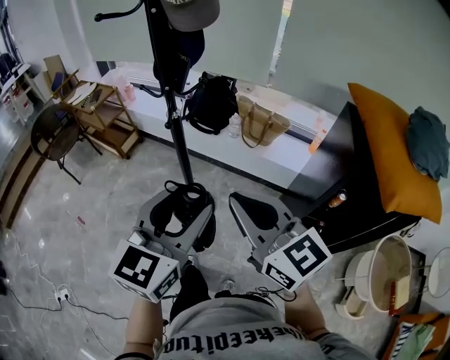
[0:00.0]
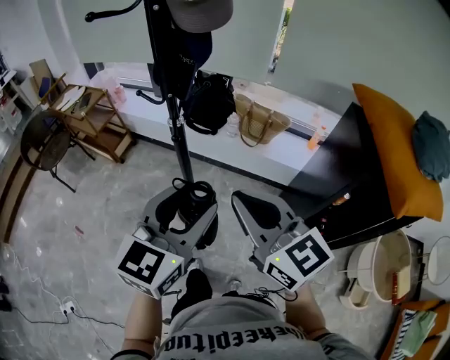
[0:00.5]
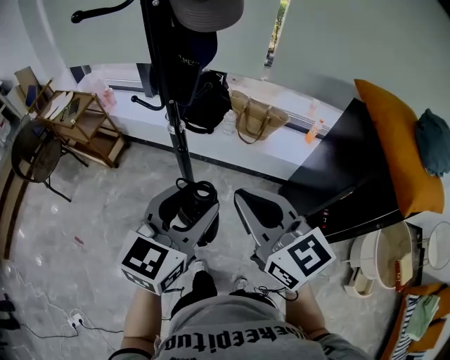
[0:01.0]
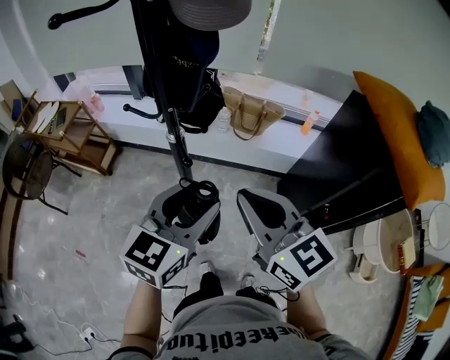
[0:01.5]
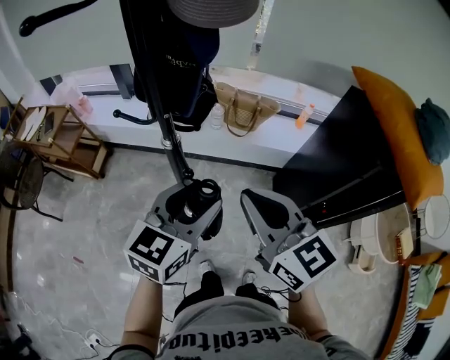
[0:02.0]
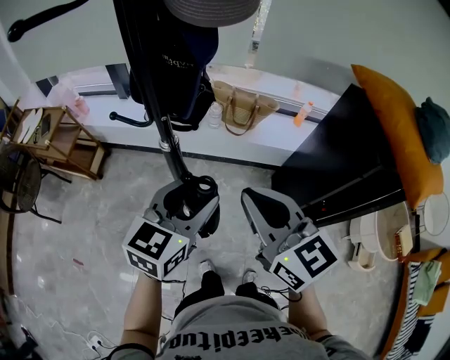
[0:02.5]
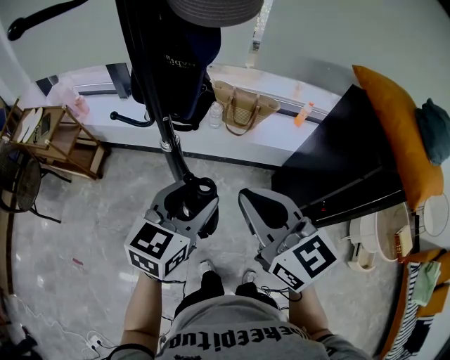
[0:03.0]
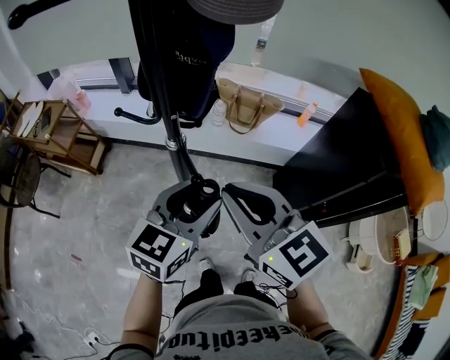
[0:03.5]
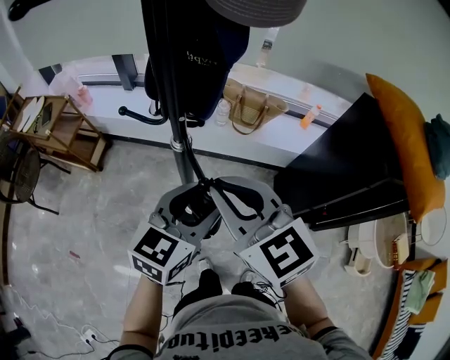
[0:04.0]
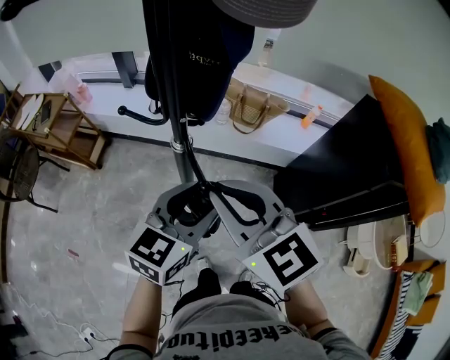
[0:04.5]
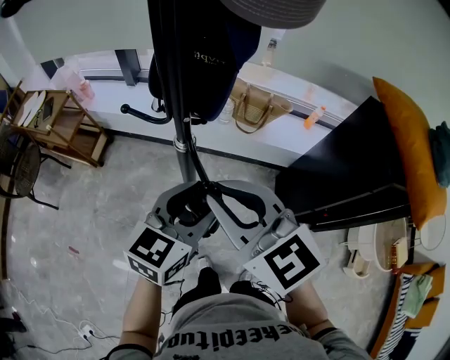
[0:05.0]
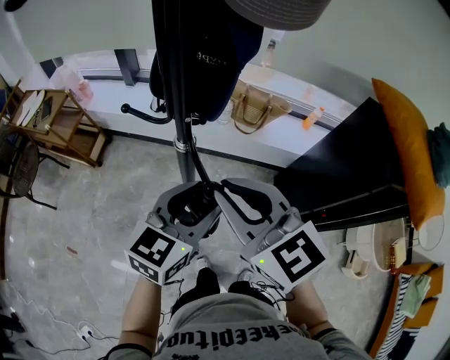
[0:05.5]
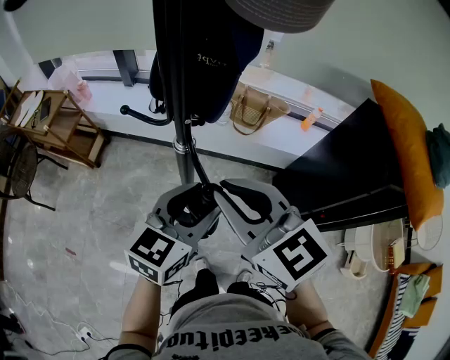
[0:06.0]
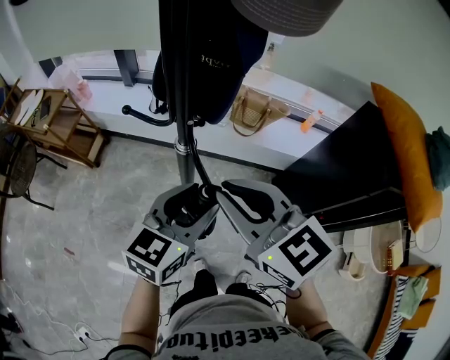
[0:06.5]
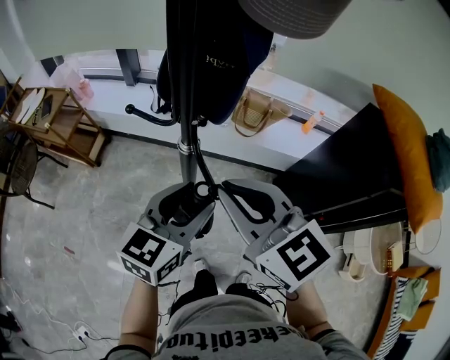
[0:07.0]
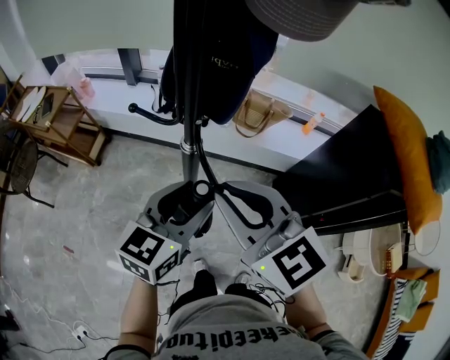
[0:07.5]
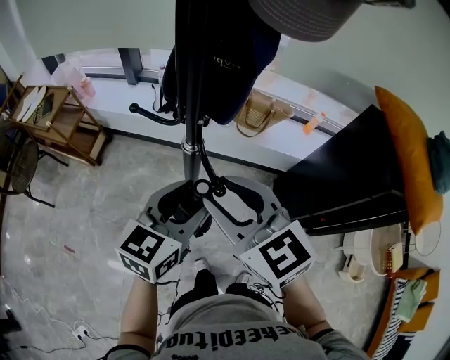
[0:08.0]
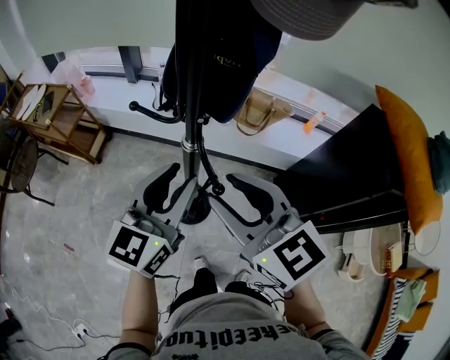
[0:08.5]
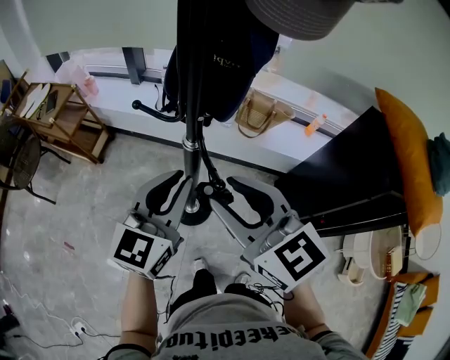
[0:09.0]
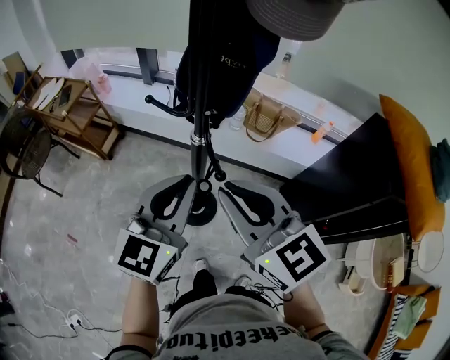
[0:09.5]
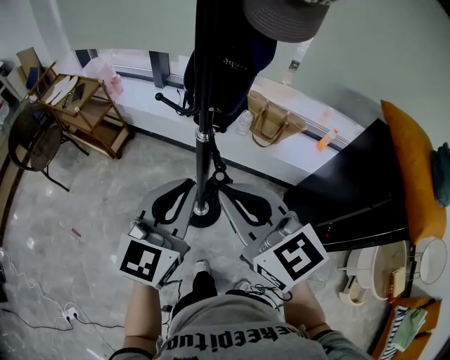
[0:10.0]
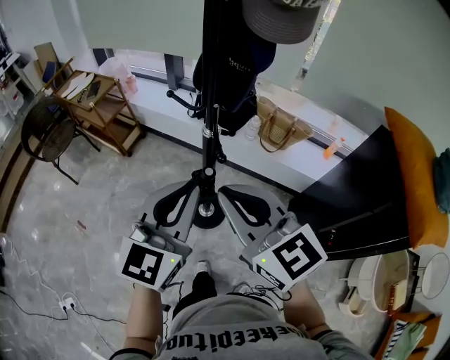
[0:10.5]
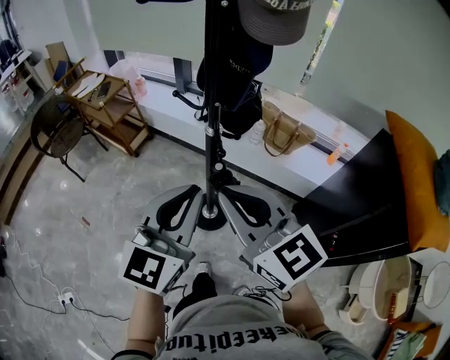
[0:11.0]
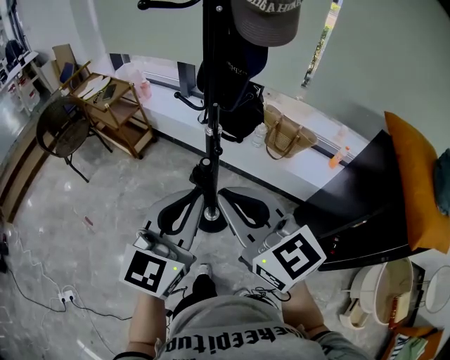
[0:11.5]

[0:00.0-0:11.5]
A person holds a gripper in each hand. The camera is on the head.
0:00.0 to 0:02.0: The left gripper goes roughly 20 cm forward, downward and to the left, and turns by some 30 degrees. Meanwhile the right gripper shifts roughly 15 cm forward and to the left, and changes its angle by some 20 degrees.
0:02.0 to 0:04.0: The right gripper is displaced to the left by roughly 10 cm.
0:04.0 to 0:07.5: The grippers make only small movements.
0:07.5 to 0:09.5: The right gripper opens and closes again. The left gripper moves upward, about 5 cm, changes its angle by roughly 20 degrees, and closes.
0:09.5 to 0:11.5: The left gripper moves backward and upward, roughly 15 cm. The right gripper heads backward, covering approximately 10 cm.

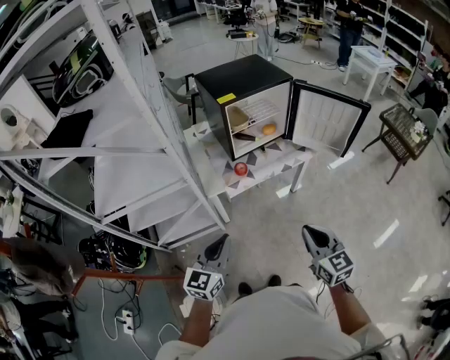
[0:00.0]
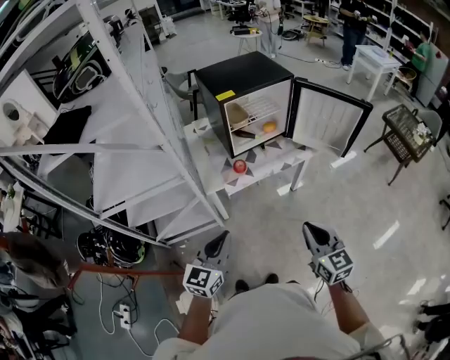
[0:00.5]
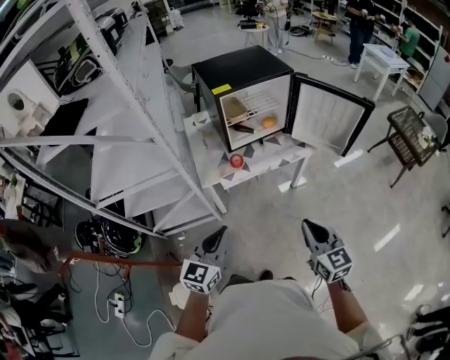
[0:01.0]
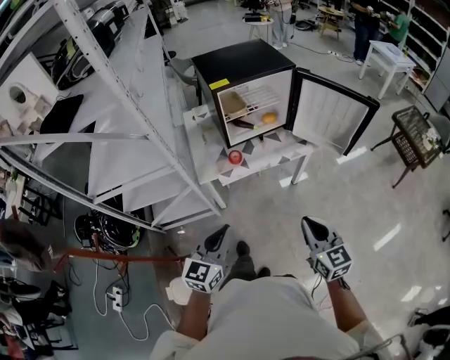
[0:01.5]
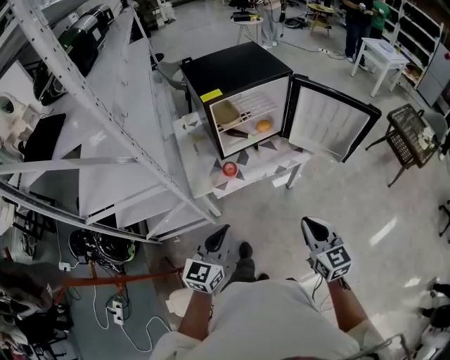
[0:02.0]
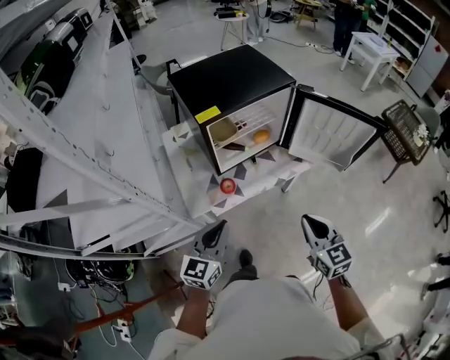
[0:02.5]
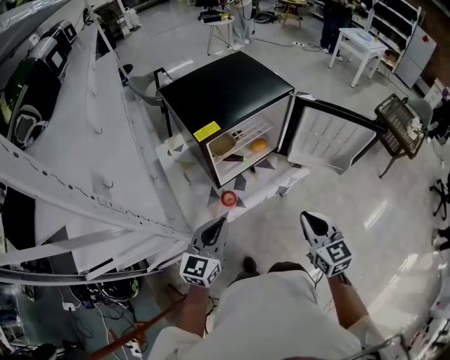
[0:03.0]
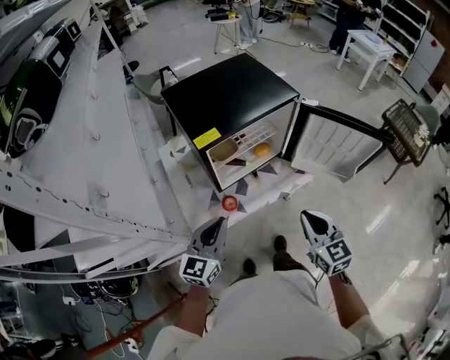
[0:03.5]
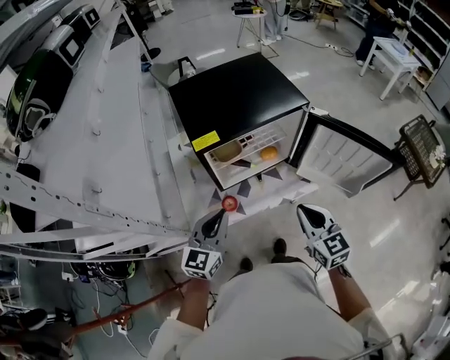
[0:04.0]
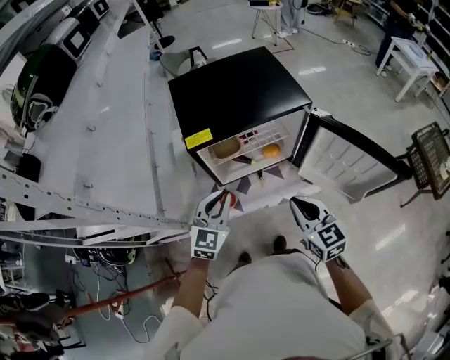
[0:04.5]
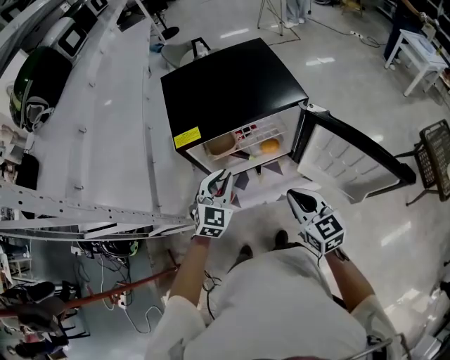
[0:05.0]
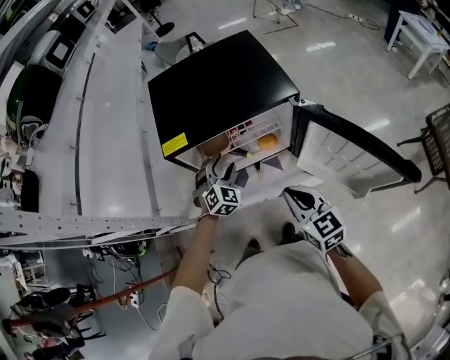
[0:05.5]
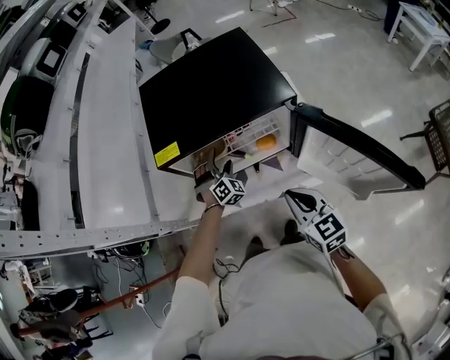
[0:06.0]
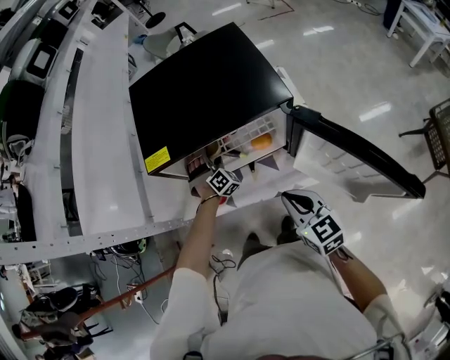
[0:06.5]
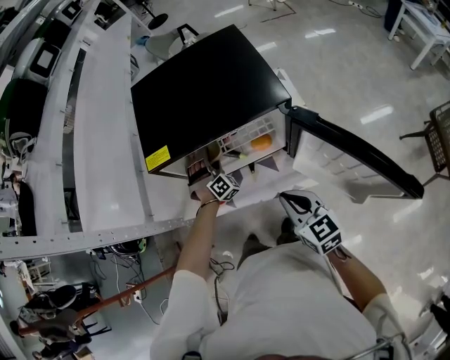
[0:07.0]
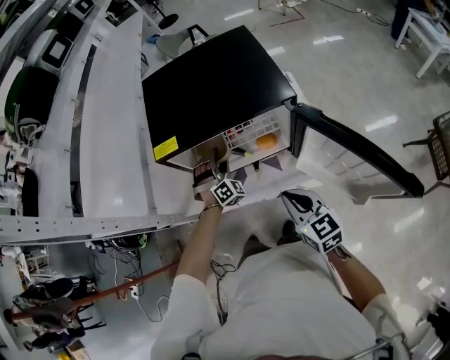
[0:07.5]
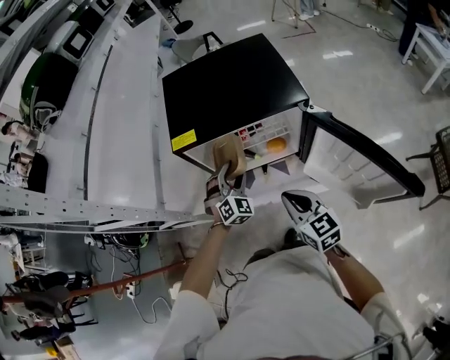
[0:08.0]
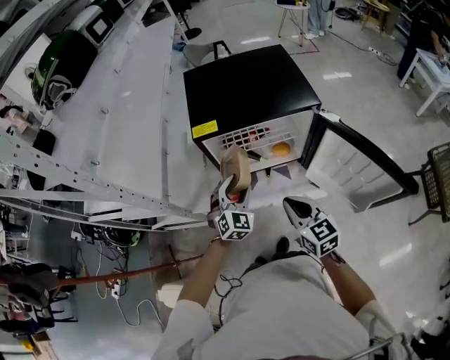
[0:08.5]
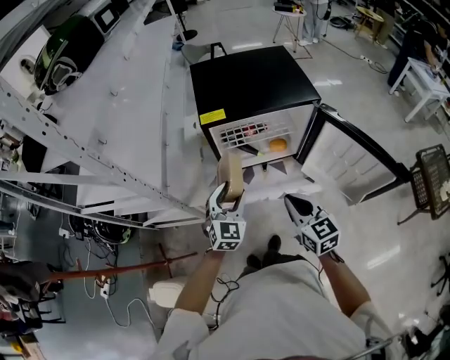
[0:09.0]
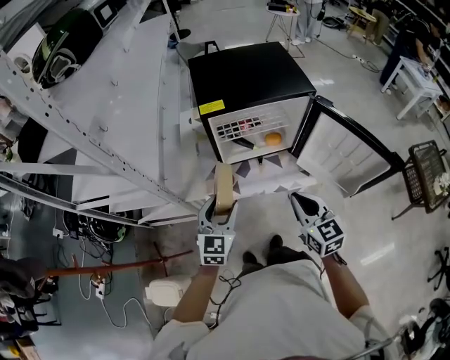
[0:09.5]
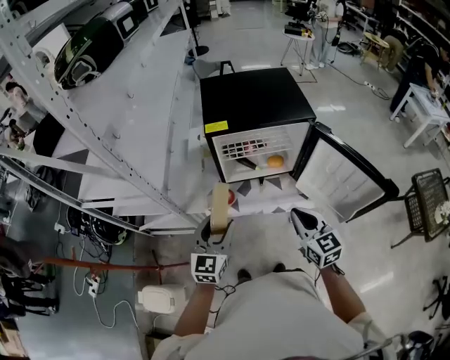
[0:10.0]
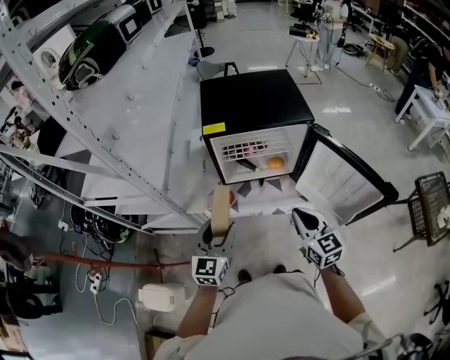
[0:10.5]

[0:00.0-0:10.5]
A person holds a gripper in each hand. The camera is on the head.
0:00.0 to 0:02.0: Both grippers move forward and to the right, about 15 cm.
0:02.0 to 0:04.0: Both grippers travel together forward, approximately 25 cm.
0:04.0 to 0:06.5: The left gripper moves some 35 cm, swivels about 80 degrees, and opens up; the right gripper shifts by some 15 cm.
0:06.5 to 0:08.5: The left gripper goes roughly 25 cm backward and upward, turns by roughly 40 degrees, and closes. Meanwhile the right gripper travels to the left by roughly 10 cm.
0:08.5 to 0:10.5: The left gripper goes some 20 cm backward and upward, and swivels roughly 40 degrees. The right gripper moves backward, approximately 5 cm.

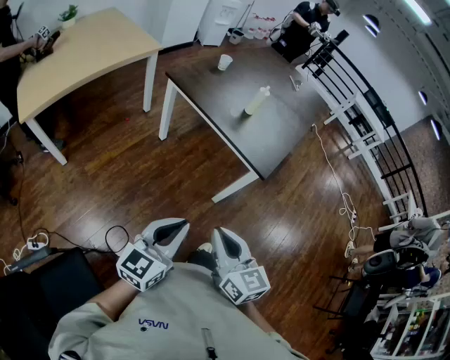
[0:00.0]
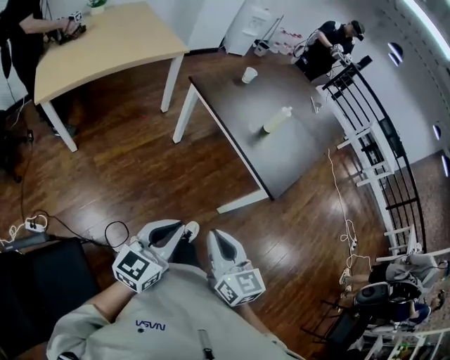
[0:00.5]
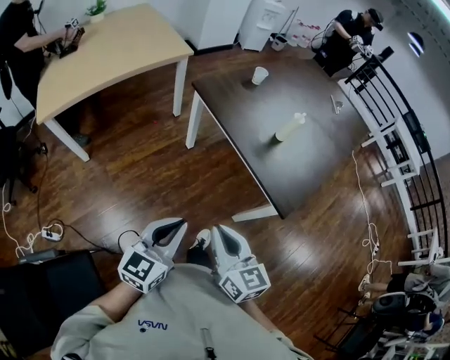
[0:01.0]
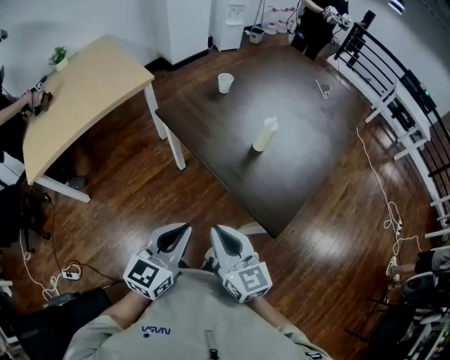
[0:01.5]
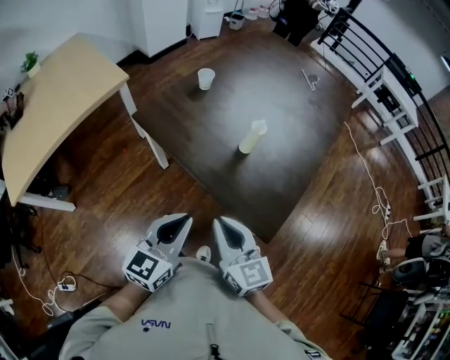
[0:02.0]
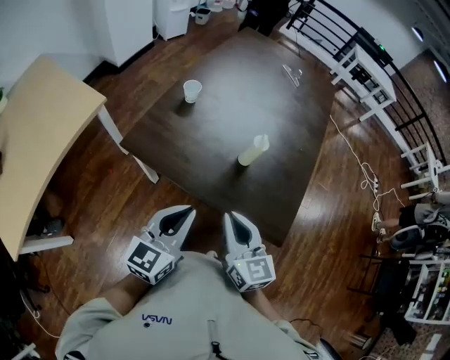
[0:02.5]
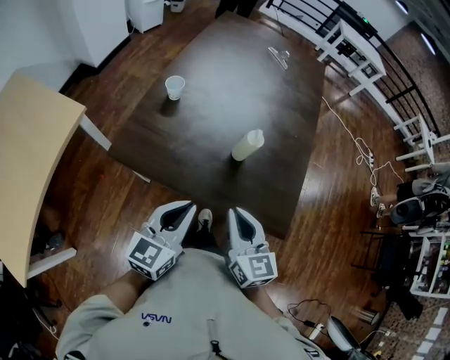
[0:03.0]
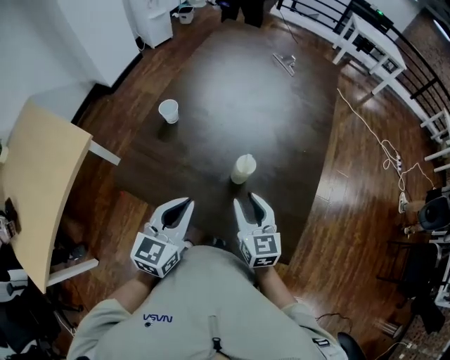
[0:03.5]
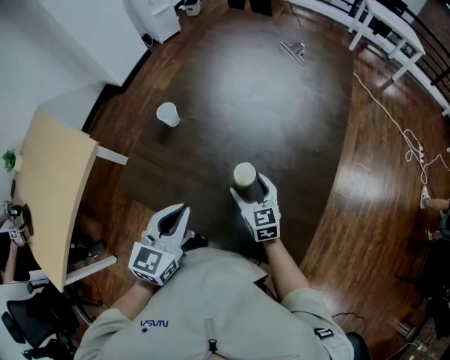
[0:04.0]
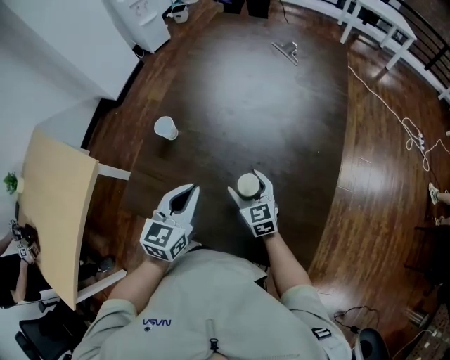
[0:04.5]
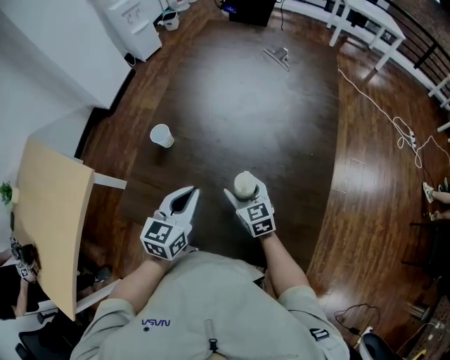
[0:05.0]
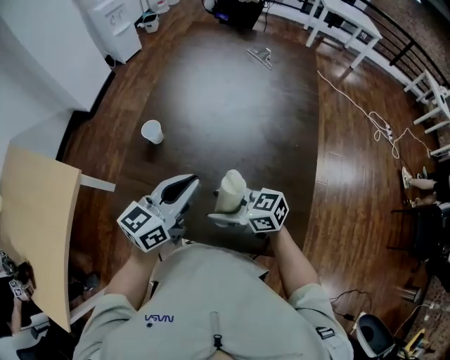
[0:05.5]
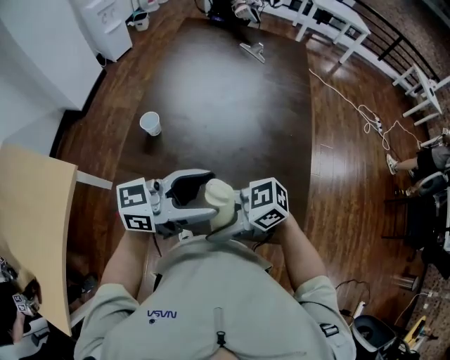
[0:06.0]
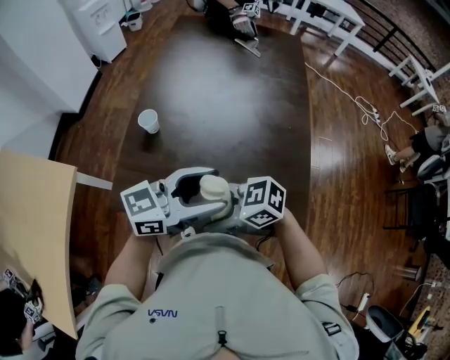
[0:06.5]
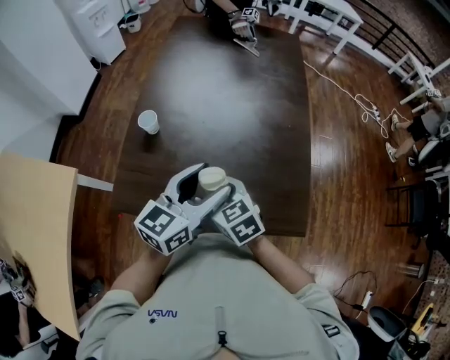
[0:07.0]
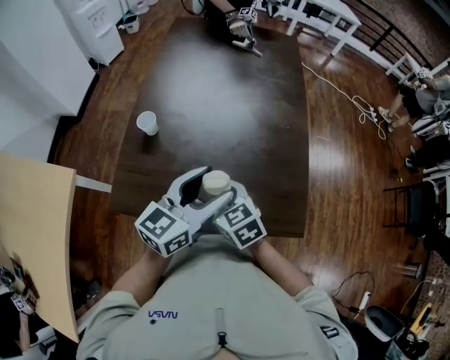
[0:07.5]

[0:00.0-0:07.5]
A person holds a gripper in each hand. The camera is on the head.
0:00.0 to 0:02.0: The two grippers go roughly 30 cm forward.
0:02.0 to 0:04.0: The right gripper travels forward and downward by roughly 30 cm, swivels approximately 20 degrees, and opens. The left gripper goes approximately 20 cm forward.
0:04.0 to 0:05.5: The left gripper goes some 10 cm forward, and changes its angle by roughly 30 degrees. Meanwhile the right gripper goes about 15 cm to the left, upward and backward, and turns by some 40 degrees.
0:05.5 to 0:07.5: The right gripper changes its angle by about 40 degrees; the left gripper changes place by approximately 5 cm, and opens up.
